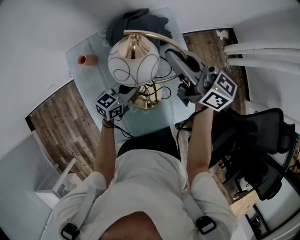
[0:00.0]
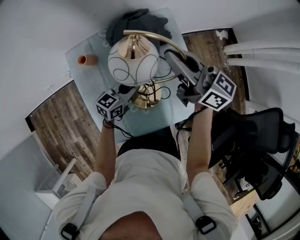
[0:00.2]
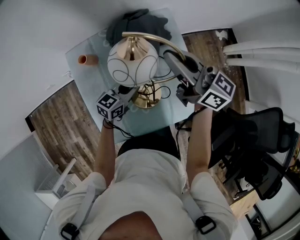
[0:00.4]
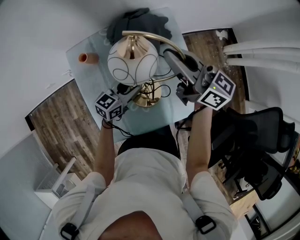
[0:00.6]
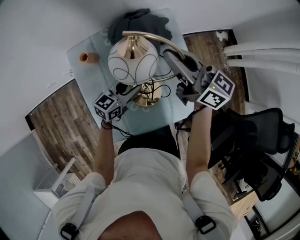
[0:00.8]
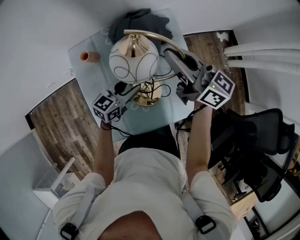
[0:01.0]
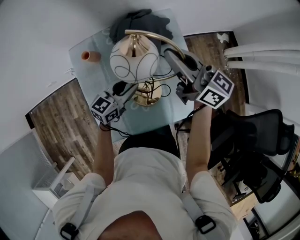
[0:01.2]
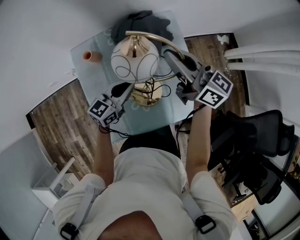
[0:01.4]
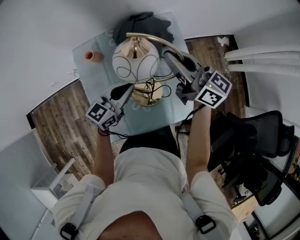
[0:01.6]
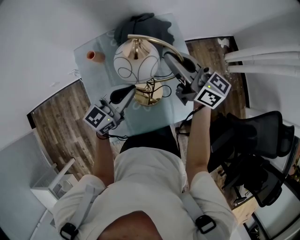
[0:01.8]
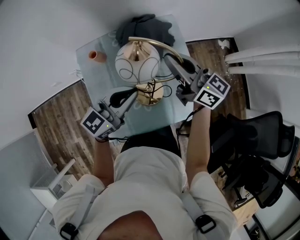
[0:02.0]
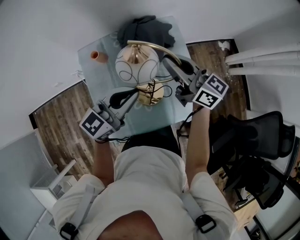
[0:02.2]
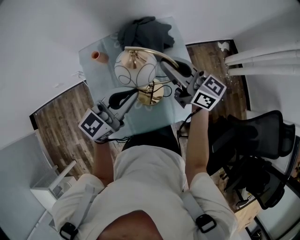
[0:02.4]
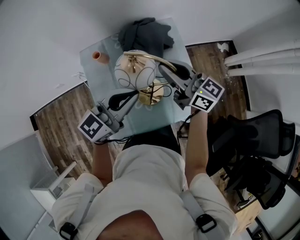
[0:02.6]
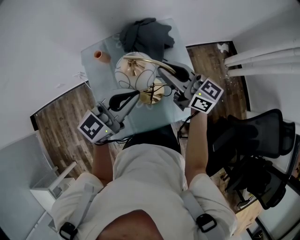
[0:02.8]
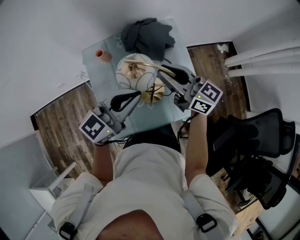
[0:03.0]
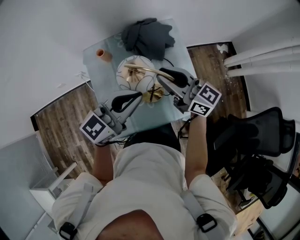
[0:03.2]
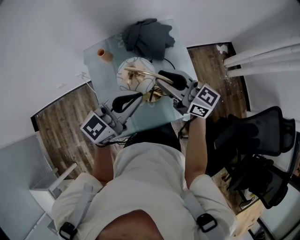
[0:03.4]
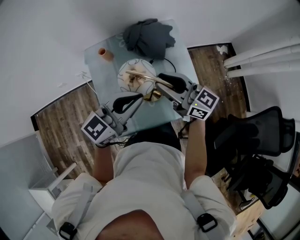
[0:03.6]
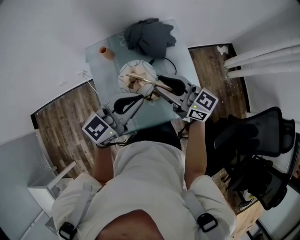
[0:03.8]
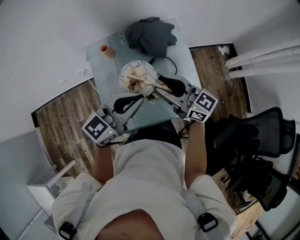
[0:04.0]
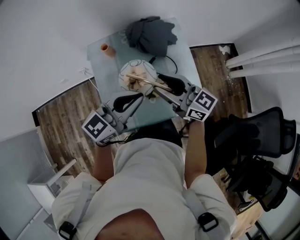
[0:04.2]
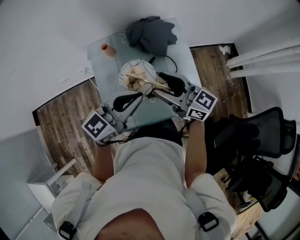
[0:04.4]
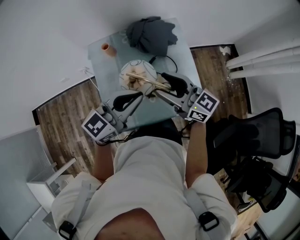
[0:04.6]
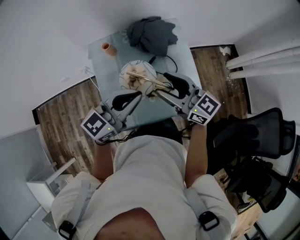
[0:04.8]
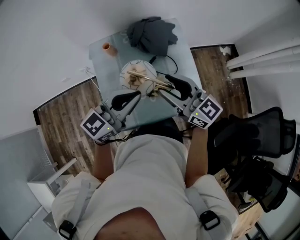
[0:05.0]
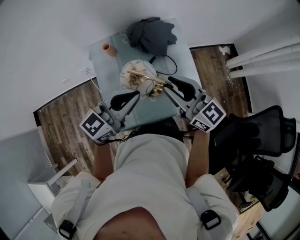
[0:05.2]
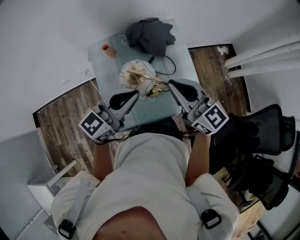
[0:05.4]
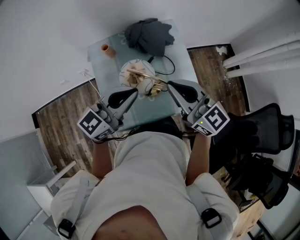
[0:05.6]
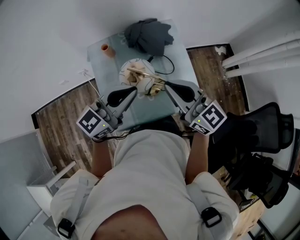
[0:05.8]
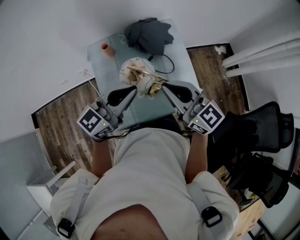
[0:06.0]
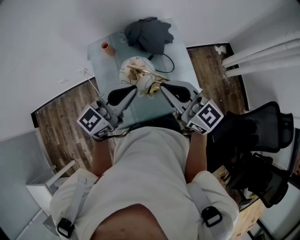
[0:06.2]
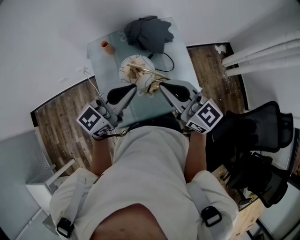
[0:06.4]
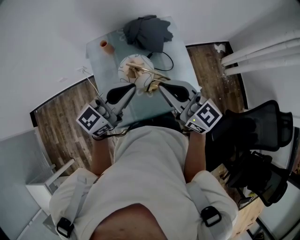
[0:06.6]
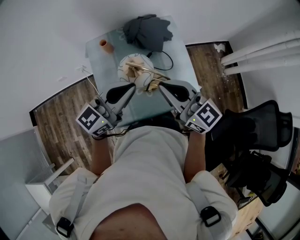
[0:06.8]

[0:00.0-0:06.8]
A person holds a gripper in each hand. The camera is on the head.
0.0 to 1.4 s: The left gripper travels upward by some 5 cm, and opens, then closes once more.
1.4 to 2.8 s: The right gripper moves backward, approximately 5 cm. Meanwhile the left gripper shifts about 20 cm upward and backward.
2.8 to 4.0 s: The right gripper moves backward, about 10 cm, and opens its fingers. Meanwhile the left gripper goes about 5 cm backward.
4.0 to 5.4 s: The right gripper shifts about 5 cm upward, and closes.
5.4 to 6.8 s: The grippers make only small movements.

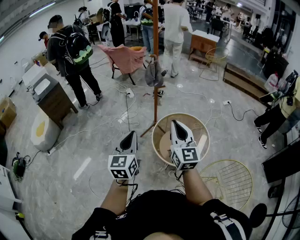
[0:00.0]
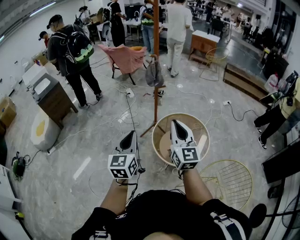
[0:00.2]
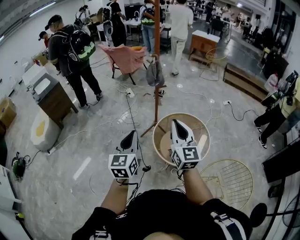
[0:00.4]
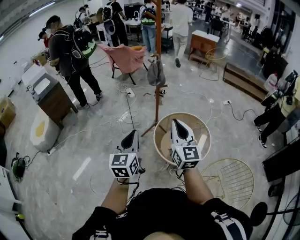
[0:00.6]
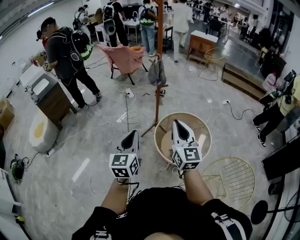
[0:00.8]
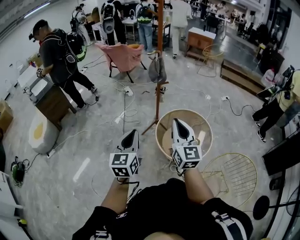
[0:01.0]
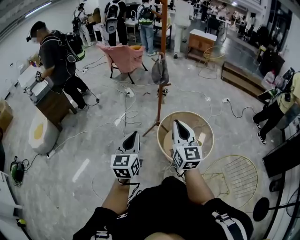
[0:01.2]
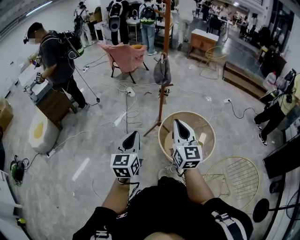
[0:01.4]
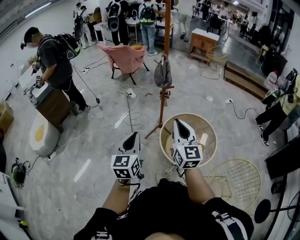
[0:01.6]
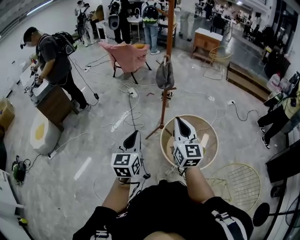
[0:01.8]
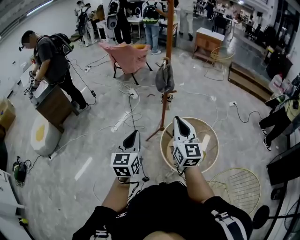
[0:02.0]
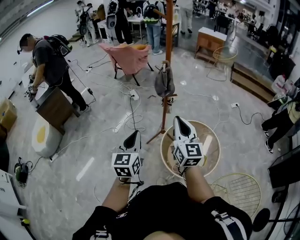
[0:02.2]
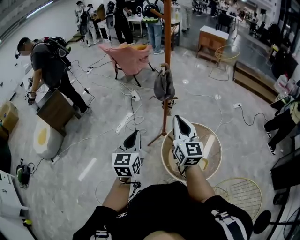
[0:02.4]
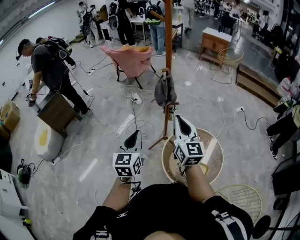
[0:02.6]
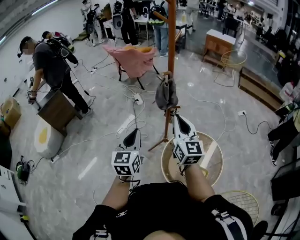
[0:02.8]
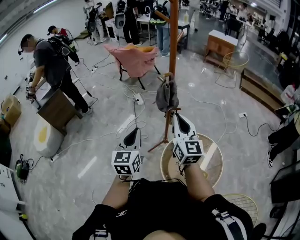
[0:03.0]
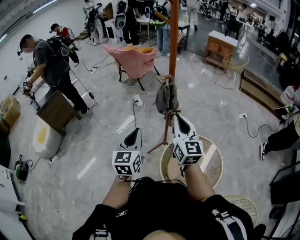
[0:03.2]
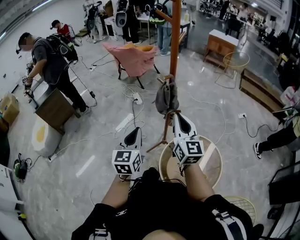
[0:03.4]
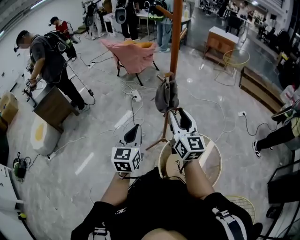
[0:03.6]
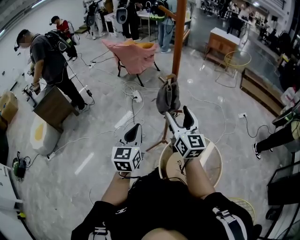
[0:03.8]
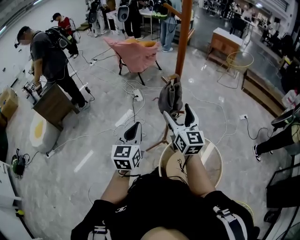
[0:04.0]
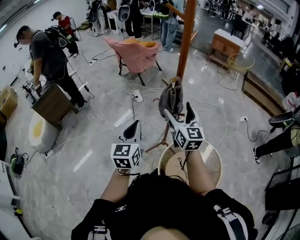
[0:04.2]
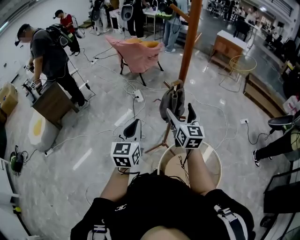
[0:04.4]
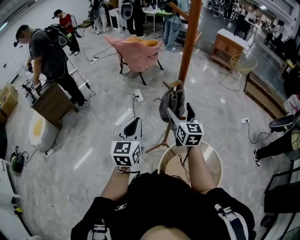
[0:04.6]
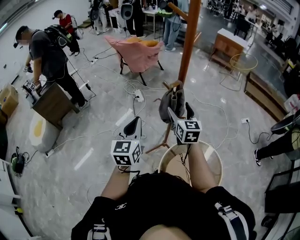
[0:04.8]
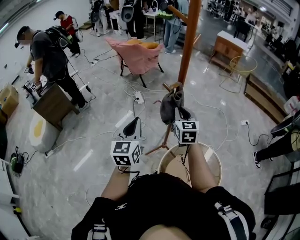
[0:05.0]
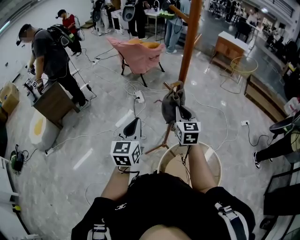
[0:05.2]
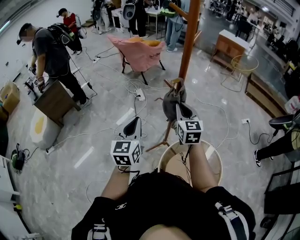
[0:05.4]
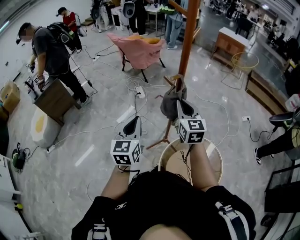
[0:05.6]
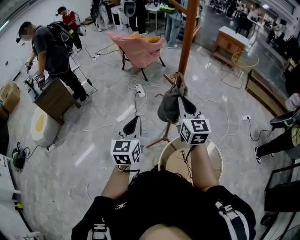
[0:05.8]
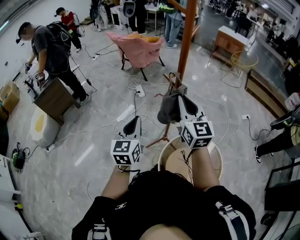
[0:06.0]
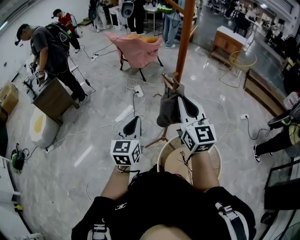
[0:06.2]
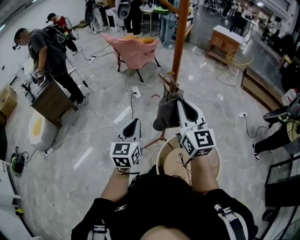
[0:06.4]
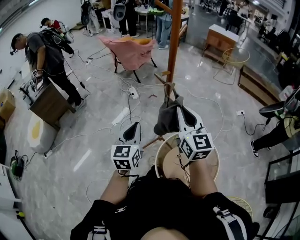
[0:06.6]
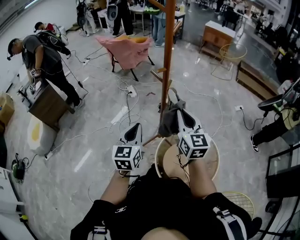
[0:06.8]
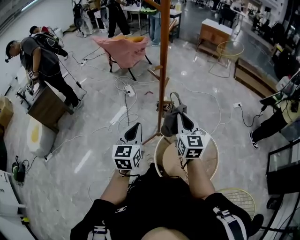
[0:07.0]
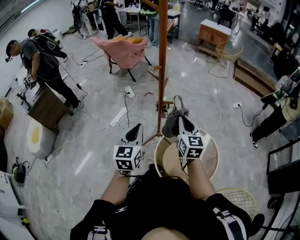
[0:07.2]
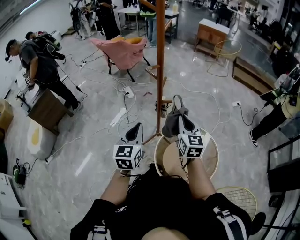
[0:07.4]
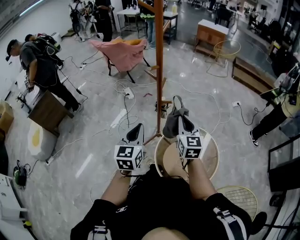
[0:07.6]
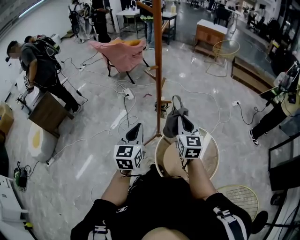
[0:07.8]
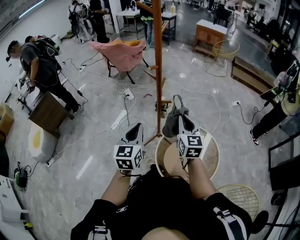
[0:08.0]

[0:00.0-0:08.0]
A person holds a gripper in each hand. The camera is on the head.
0.0 to 1.6 s: The grippers both shift to the left and forward by some 10 cm.
1.6 to 3.2 s: The grippers both shift forward by some 30 cm.
3.2 to 4.8 s: The left gripper heads forward, covering about 15 cm, while the right gripper shifts approximately 20 cm forward and downward, and opens.
4.8 to 6.4 s: The right gripper travels backward and upward by some 20 cm, and closes. The left gripper goes about 5 cm backward.
6.4 to 8.0 s: The left gripper travels to the right and backward by about 10 cm. Meanwhile the right gripper shifts some 15 cm downward and to the right, and rotates approximately 20 degrees.

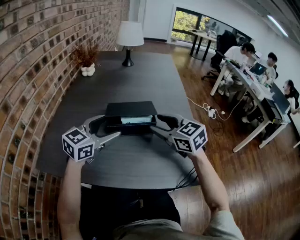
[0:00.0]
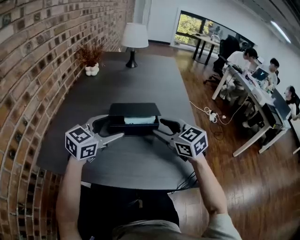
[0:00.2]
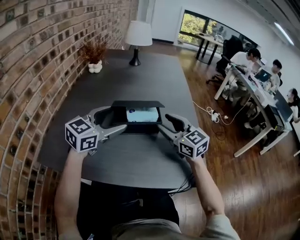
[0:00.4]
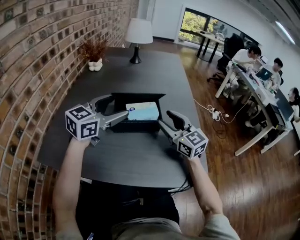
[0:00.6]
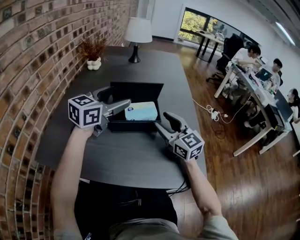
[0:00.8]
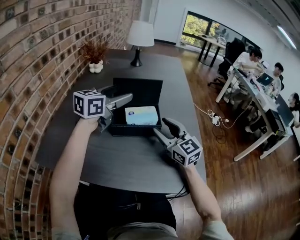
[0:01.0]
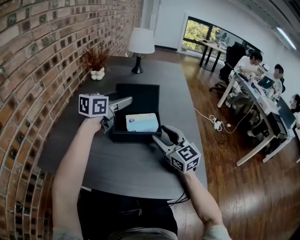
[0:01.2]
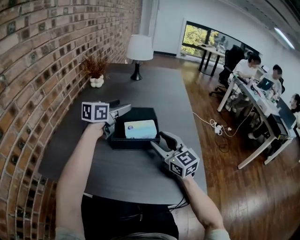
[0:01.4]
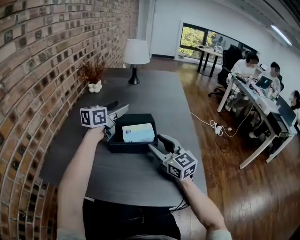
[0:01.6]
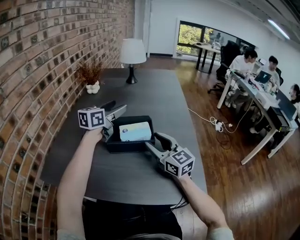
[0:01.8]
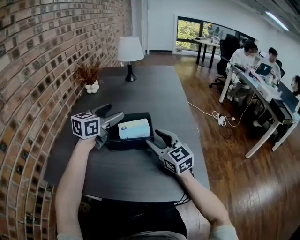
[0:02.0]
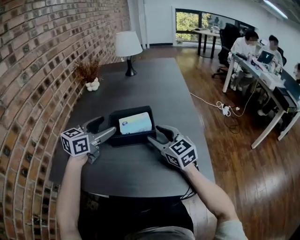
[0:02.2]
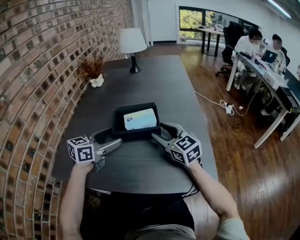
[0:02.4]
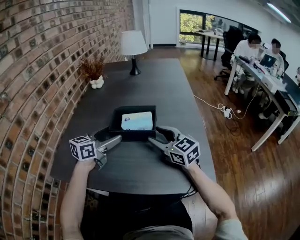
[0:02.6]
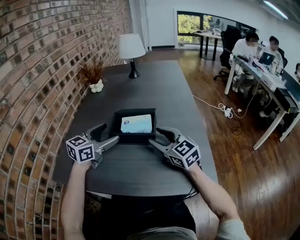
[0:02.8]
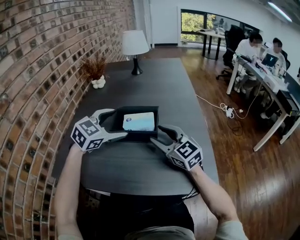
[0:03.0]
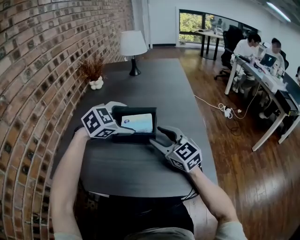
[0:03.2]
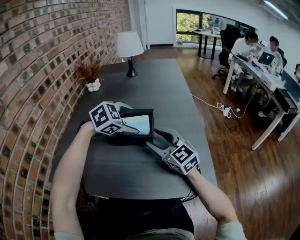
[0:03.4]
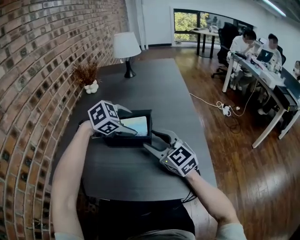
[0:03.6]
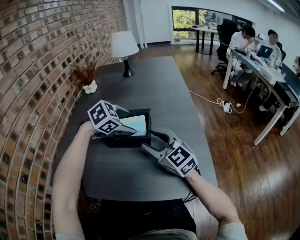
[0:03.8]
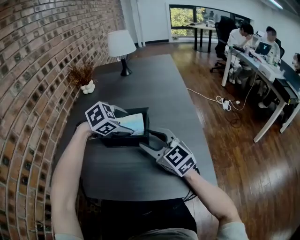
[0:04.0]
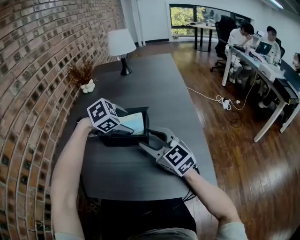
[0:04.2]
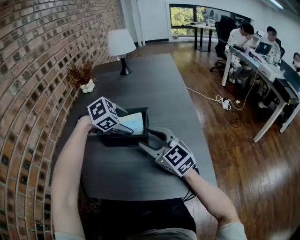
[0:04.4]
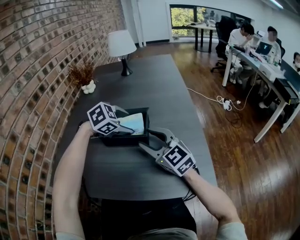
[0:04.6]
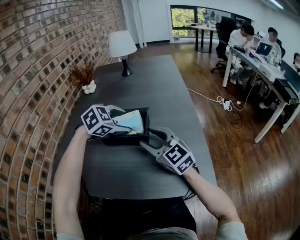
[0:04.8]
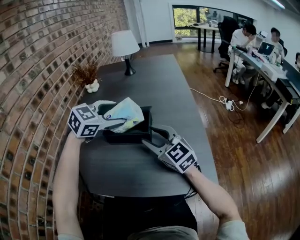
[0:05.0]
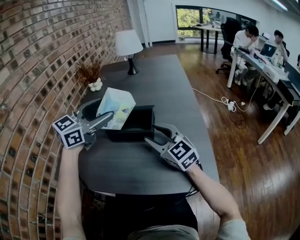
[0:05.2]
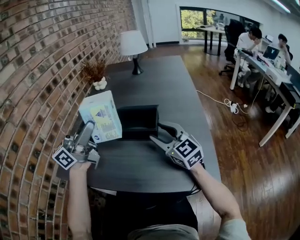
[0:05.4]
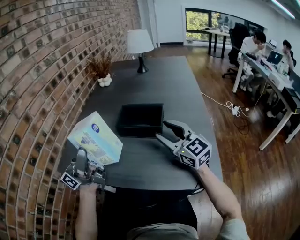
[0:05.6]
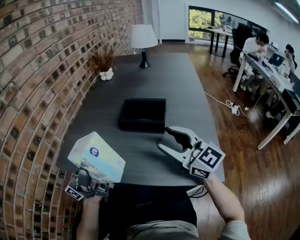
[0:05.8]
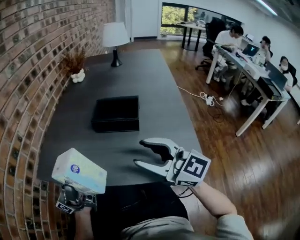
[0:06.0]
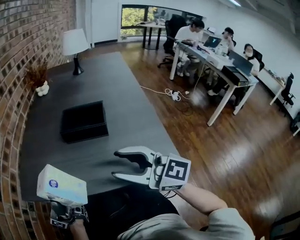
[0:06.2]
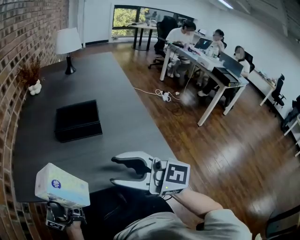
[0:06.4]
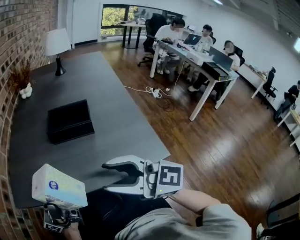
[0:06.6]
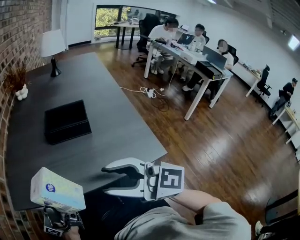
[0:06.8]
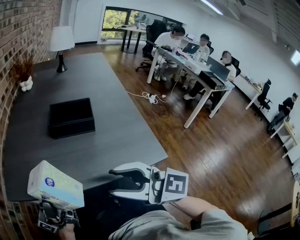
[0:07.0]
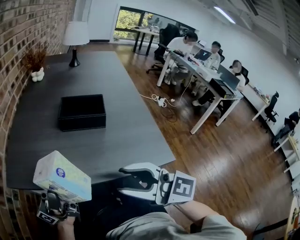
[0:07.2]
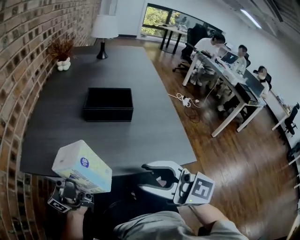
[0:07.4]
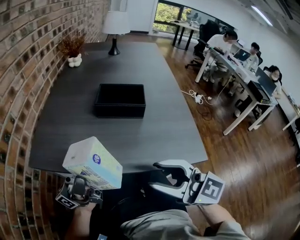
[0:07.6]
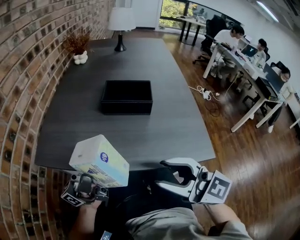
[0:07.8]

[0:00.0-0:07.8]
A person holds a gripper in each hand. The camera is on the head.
0.0 to 1.6 s: The right gripper swivels roughly 20 degrees; the left gripper moves forward, roughly 15 cm, and swivels about 20 degrees.
1.6 to 3.2 s: The left gripper shifts some 10 cm backward and to the right, and angles its fingers downward, by some 40 degrees.
3.2 to 4.6 s: The left gripper travels downward by roughly 5 cm.
4.6 to 6.2 s: The right gripper moves backward, approximately 20 cm, and changes its angle by approximately 20 degrees, while the left gripper heads backward and to the left, covering approximately 35 cm, and tilts its fingers approximately 110 degrees upward.
6.2 to 7.8 s: The right gripper moves backward, about 10 cm.

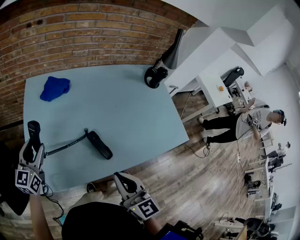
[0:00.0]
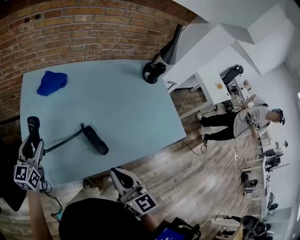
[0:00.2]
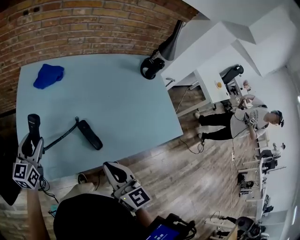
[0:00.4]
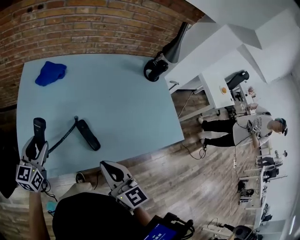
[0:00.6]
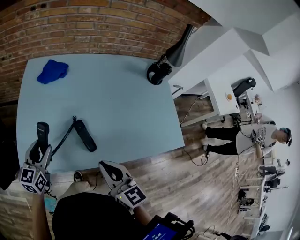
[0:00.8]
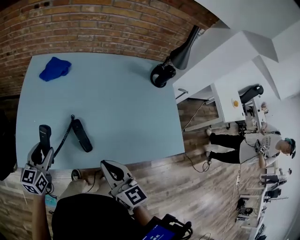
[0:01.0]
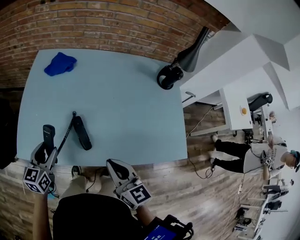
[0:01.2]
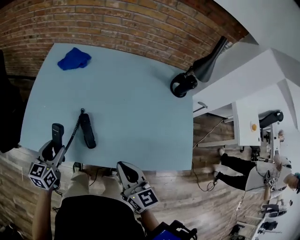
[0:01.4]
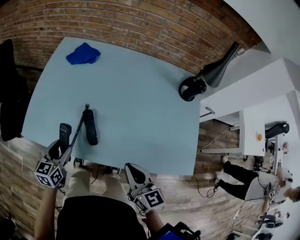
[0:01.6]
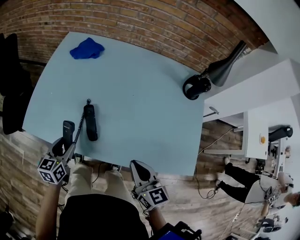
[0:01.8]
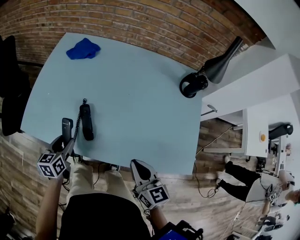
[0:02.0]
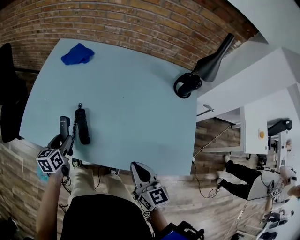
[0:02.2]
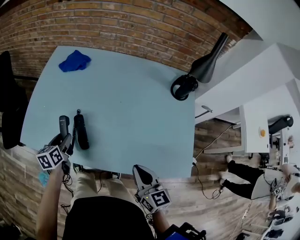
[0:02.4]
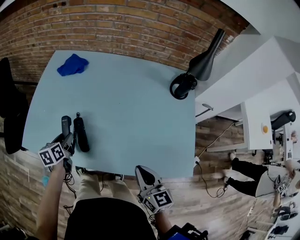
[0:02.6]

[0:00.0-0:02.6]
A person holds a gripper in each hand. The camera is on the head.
0.0 to 1.2 s: The left gripper shifts roughly 20 cm to the right and backward, and rotates roughly 20 degrees, while the right gripper moves to the right, roughly 15 cm, and rotates roughly 20 degrees.
1.2 to 2.6 s: The left gripper heads downward and to the right, covering about 10 cm, and turns by approximately 30 degrees. Meanwhile the right gripper goes some 15 cm to the right.
